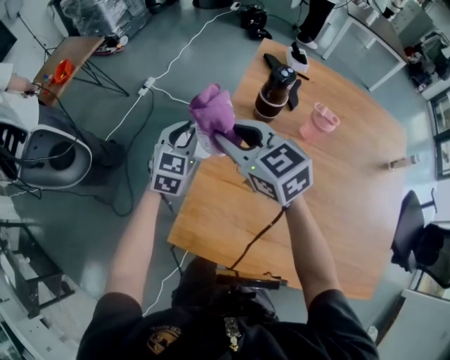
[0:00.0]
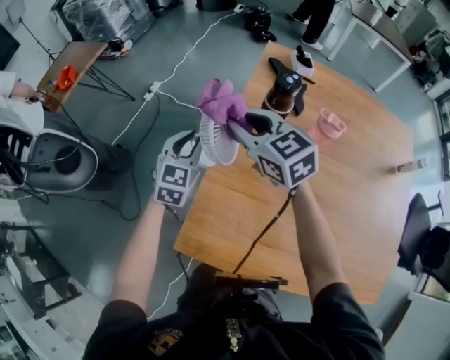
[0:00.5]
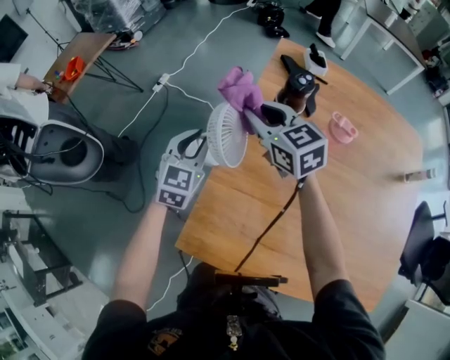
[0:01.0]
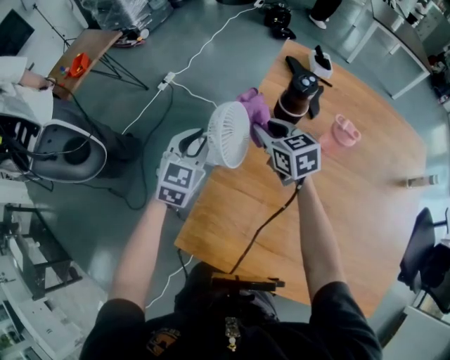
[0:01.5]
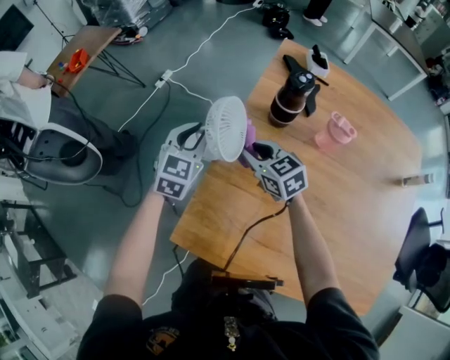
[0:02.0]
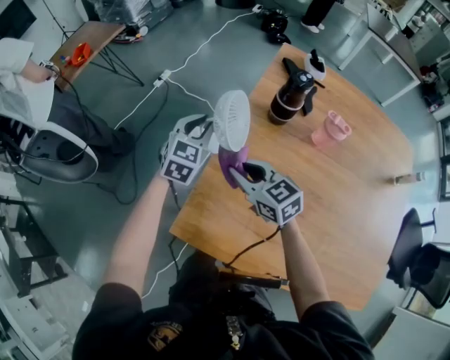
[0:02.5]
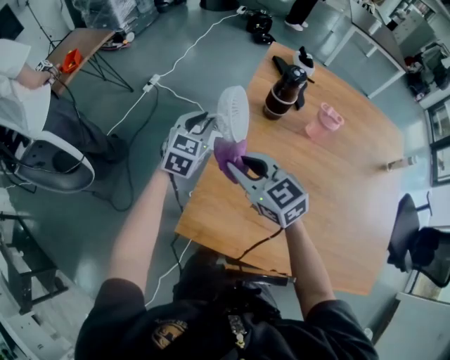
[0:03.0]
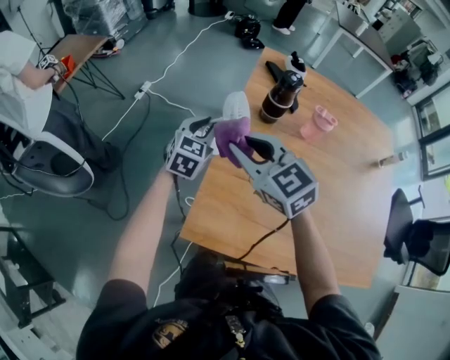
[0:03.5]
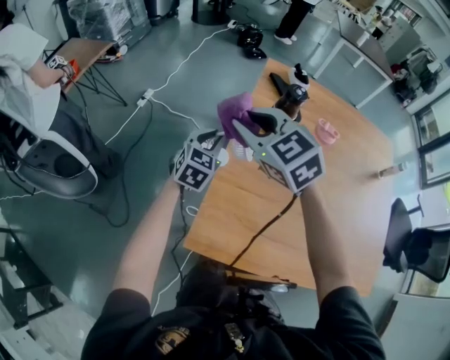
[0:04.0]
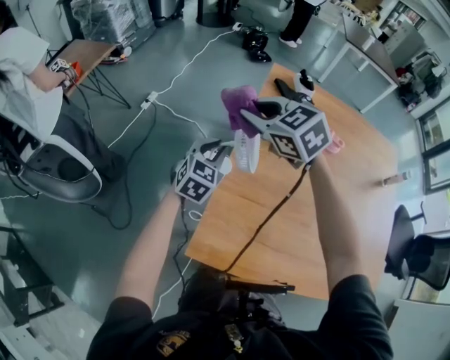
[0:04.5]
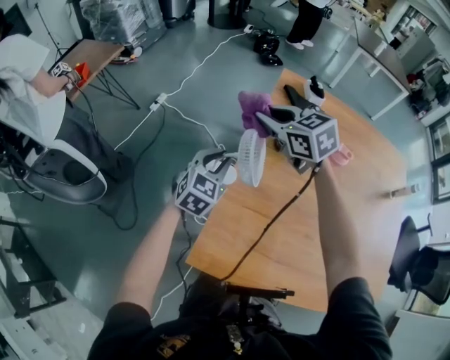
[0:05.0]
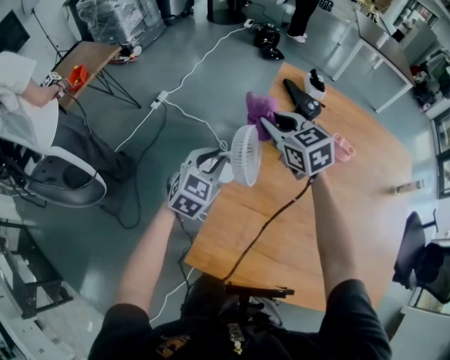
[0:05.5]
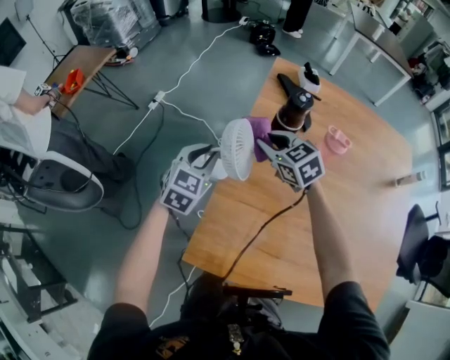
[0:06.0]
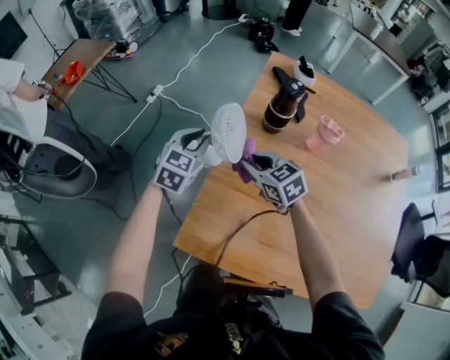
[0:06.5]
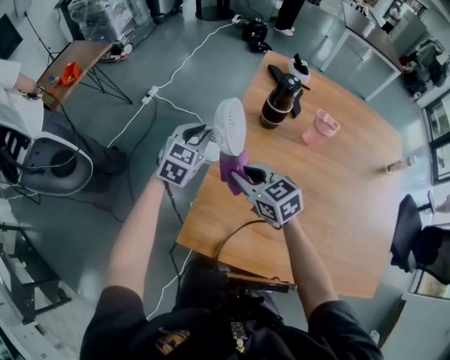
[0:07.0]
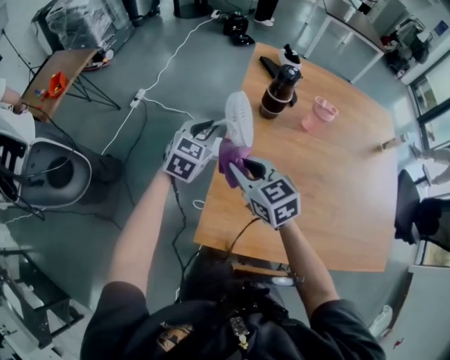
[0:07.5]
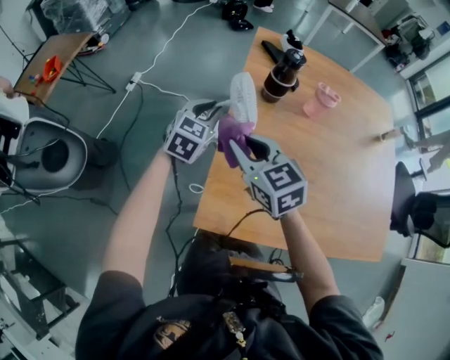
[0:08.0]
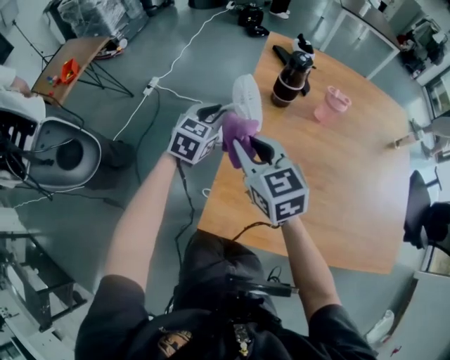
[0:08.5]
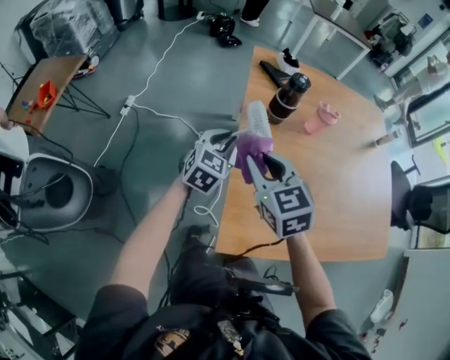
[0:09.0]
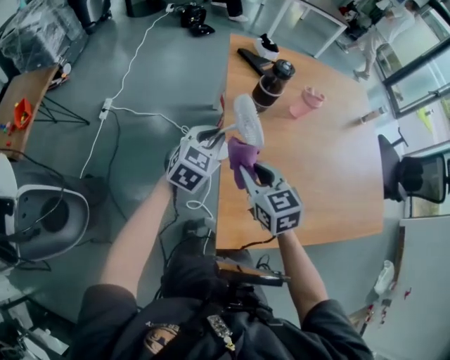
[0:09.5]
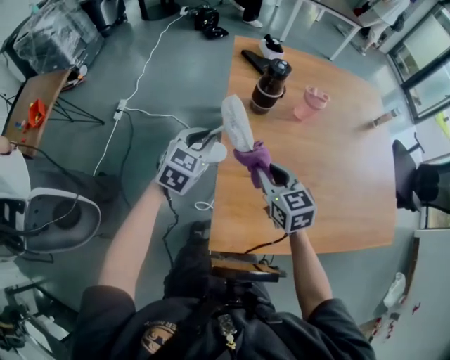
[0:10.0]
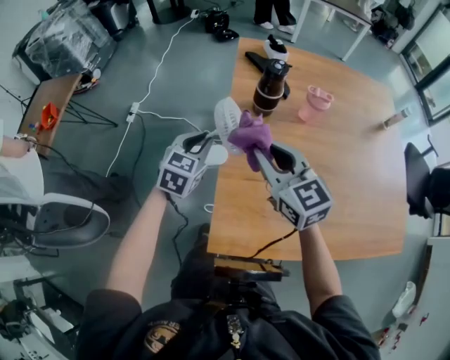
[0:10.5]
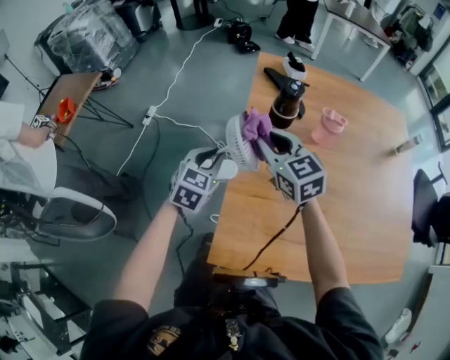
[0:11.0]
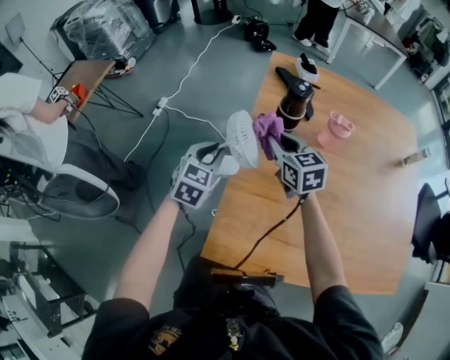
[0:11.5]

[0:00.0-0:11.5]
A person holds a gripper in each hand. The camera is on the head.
0.0 to 2.0 s: The right gripper heads downward, covering some 15 cm.
2.0 to 4.0 s: The right gripper shifts about 20 cm upward and to the left, and rotates some 20 degrees.
4.0 to 6.0 s: The right gripper shifts about 20 cm downward, to the right and forward.
6.0 to 7.5 s: The right gripper heads backward and to the left, covering some 20 cm.
7.5 to 9.5 s: The right gripper turns by about 20 degrees.
9.5 to 11.5 s: The right gripper travels forward and to the right by about 15 cm. The left gripper rotates about 20 degrees.

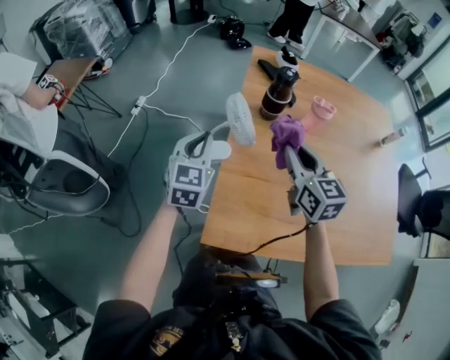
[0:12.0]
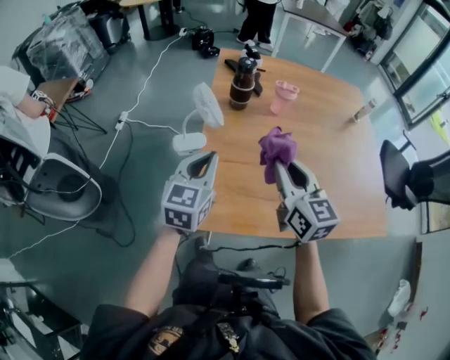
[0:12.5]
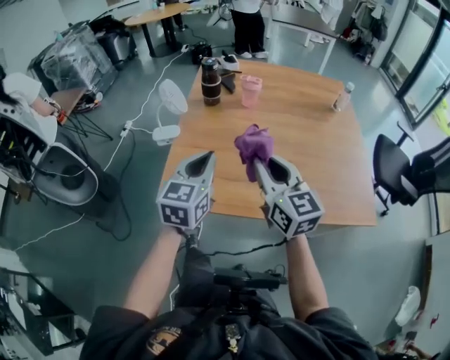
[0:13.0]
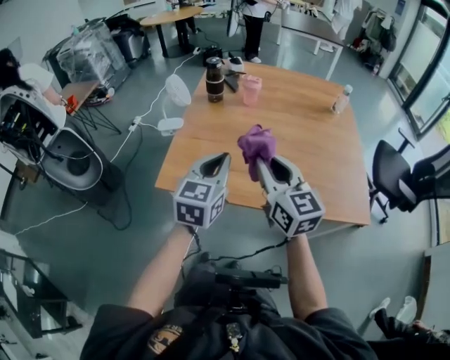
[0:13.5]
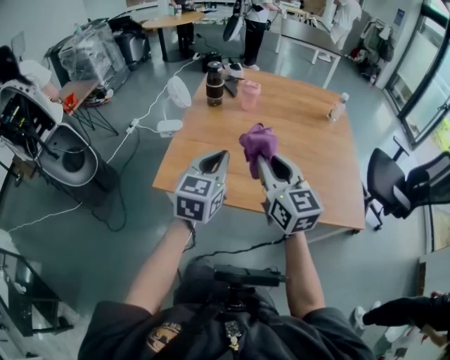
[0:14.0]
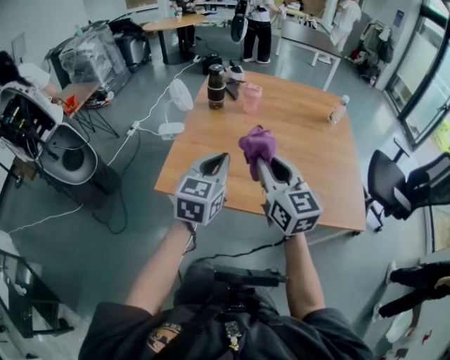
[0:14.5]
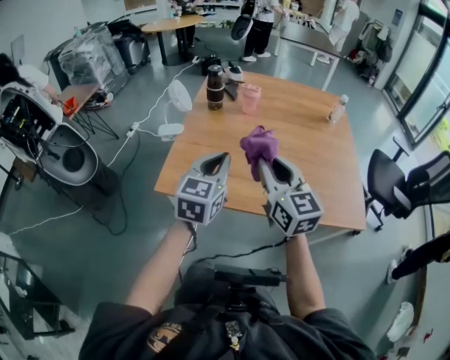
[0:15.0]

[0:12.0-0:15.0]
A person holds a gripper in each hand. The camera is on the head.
12.0 to 13.5 s: Both grippers travel together backward and to the right, roughly 40 cm.
13.5 to 15.0 s: Both grippers stay put.

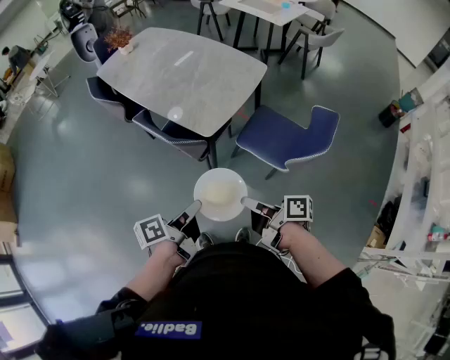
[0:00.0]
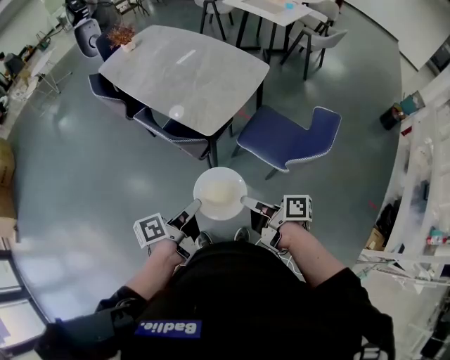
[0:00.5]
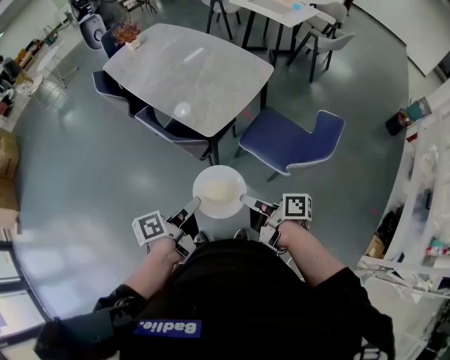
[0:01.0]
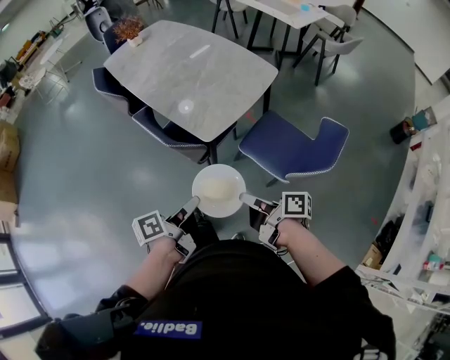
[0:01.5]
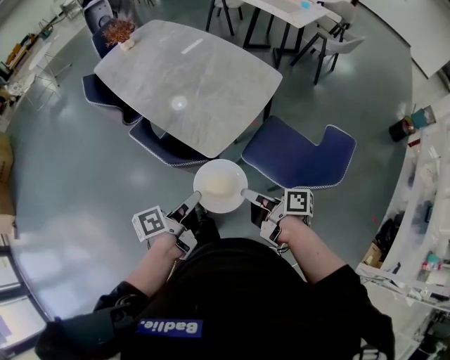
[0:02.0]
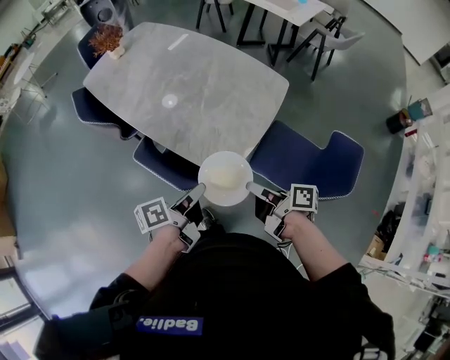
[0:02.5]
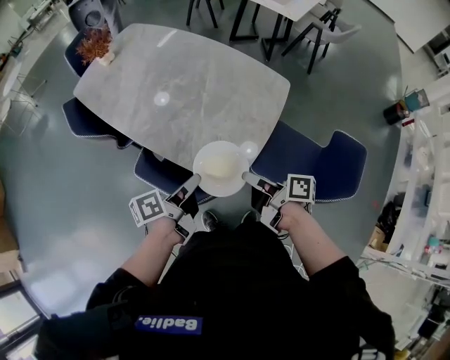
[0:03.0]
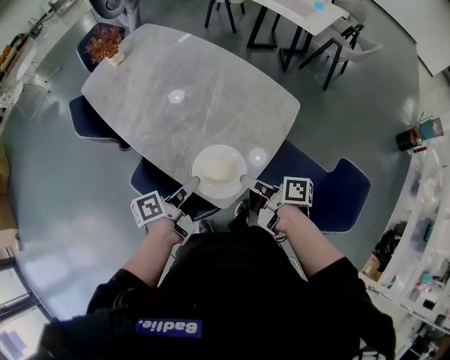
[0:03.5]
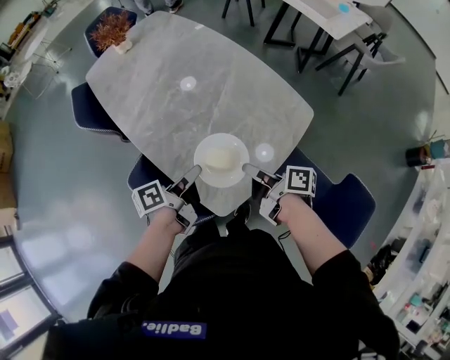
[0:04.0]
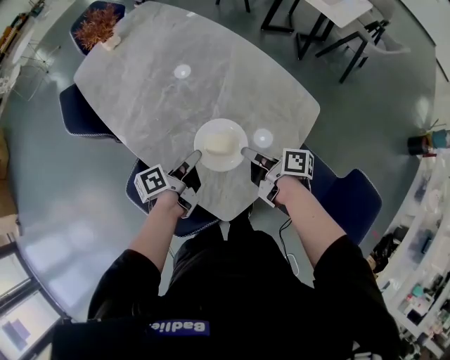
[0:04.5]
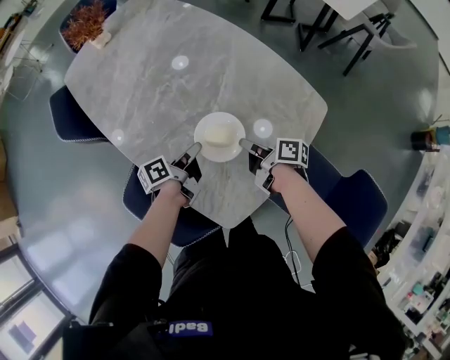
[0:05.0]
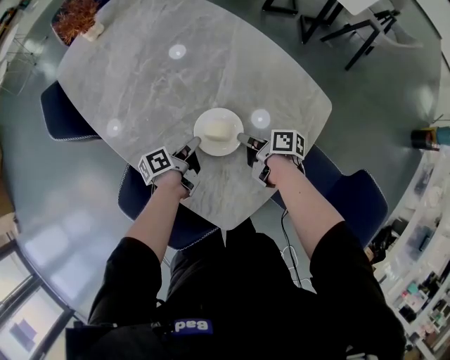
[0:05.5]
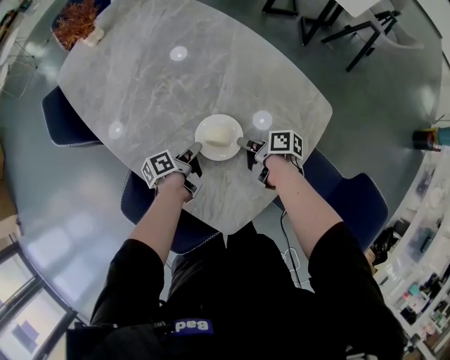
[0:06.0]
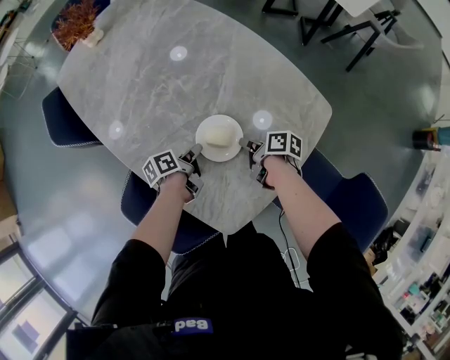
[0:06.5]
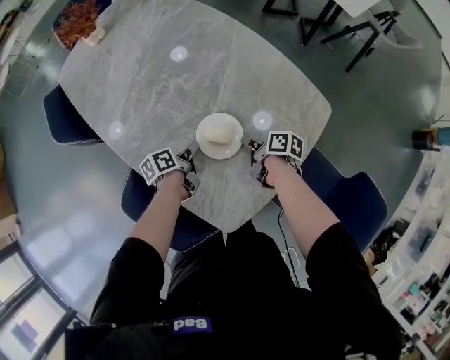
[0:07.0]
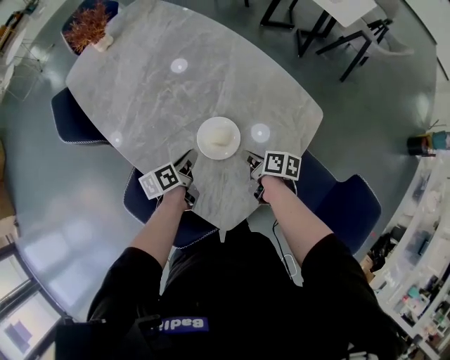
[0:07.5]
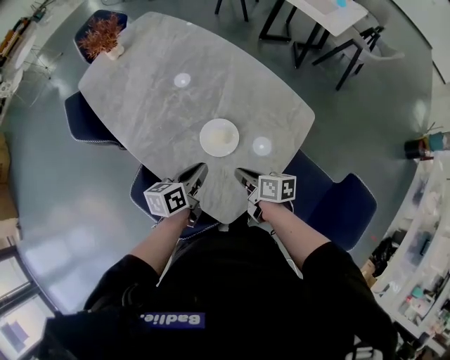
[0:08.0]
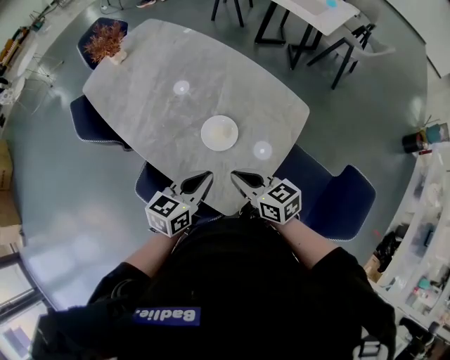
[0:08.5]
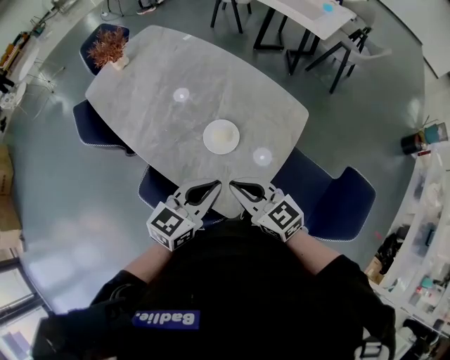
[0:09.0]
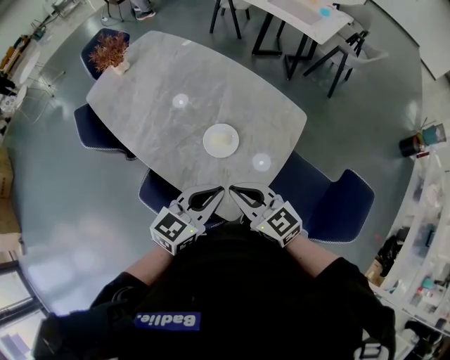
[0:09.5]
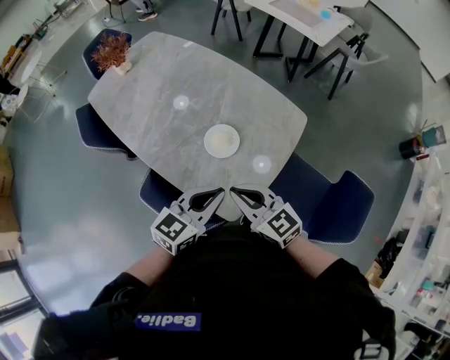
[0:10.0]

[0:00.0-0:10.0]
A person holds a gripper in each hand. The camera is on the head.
0.0 to 2.0 s: The left gripper changes place by approximately 15 cm.
2.0 to 4.0 s: The left gripper changes place by some 35 cm.
4.0 to 6.0 s: The left gripper is displaced downward by some 20 cm.
6.0 to 8.0 s: The left gripper travels upward by about 15 cm, and twists roughly 40 degrees clockwise, seen from behind.
8.0 to 10.0 s: The left gripper heads upward, covering about 15 cm, and turns by some 40 degrees.

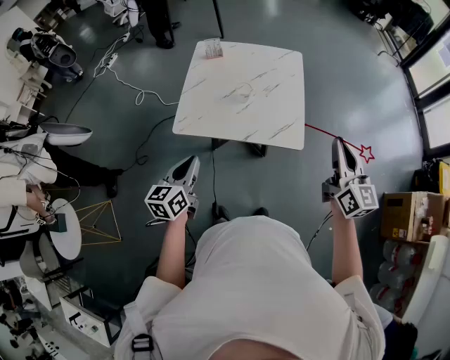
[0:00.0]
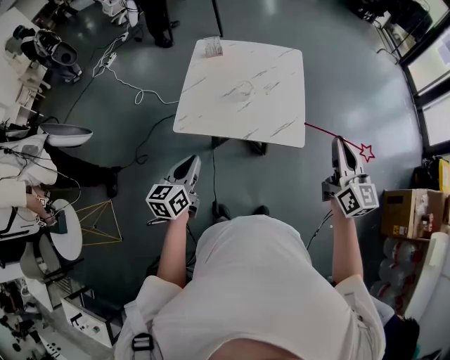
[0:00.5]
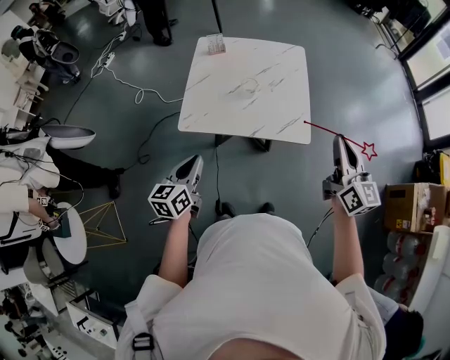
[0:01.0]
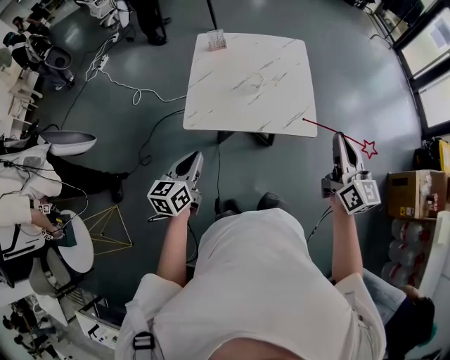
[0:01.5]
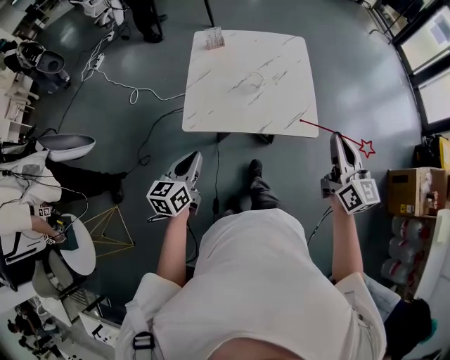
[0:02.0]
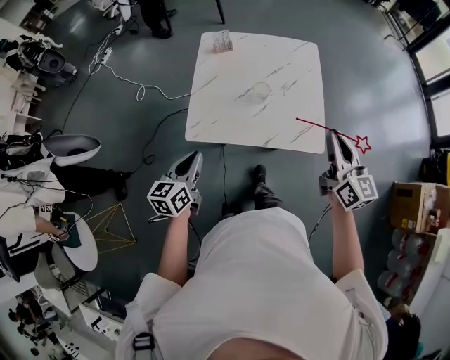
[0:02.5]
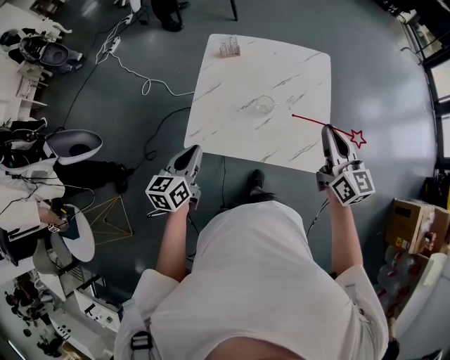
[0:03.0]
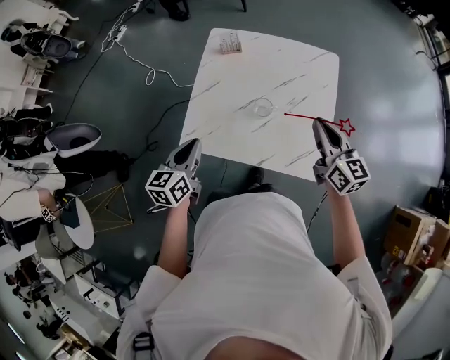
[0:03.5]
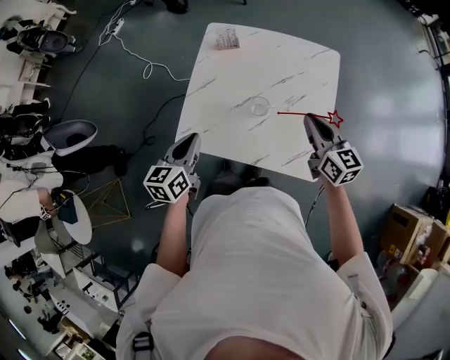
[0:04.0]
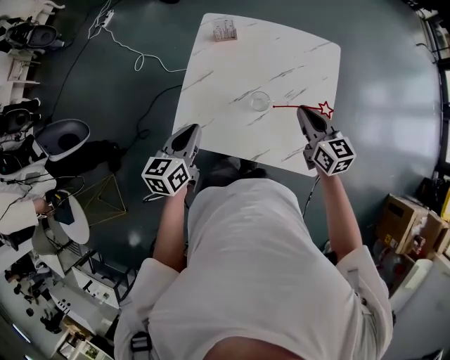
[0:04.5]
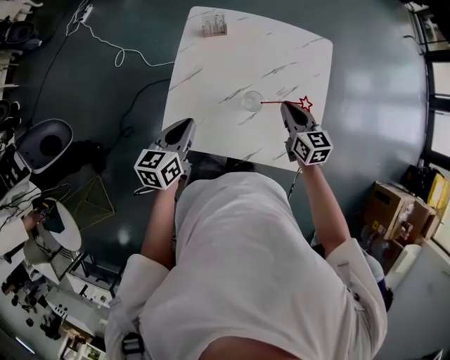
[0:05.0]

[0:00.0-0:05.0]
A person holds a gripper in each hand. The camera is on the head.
0.0 to 2.5 s: The grippers both shift to the left and forward by approximately 15 cm.
2.5 to 5.0 s: The right gripper is displaced forward and downward by about 35 cm, and changes its angle by approximately 30 degrees; the left gripper goes approximately 25 cm forward.
